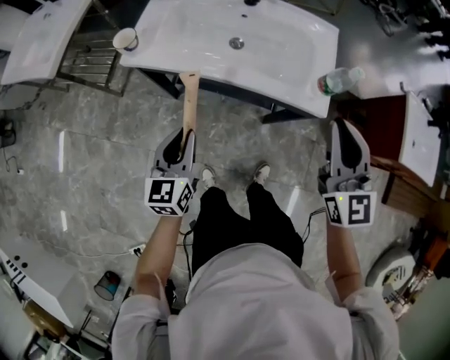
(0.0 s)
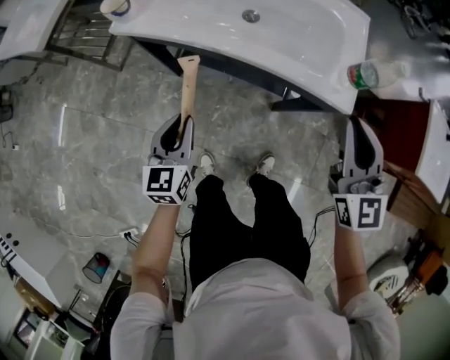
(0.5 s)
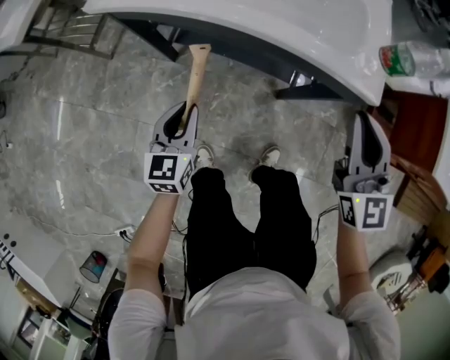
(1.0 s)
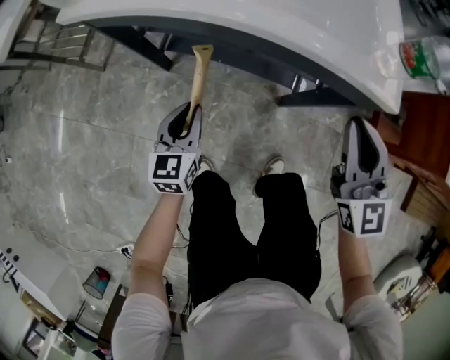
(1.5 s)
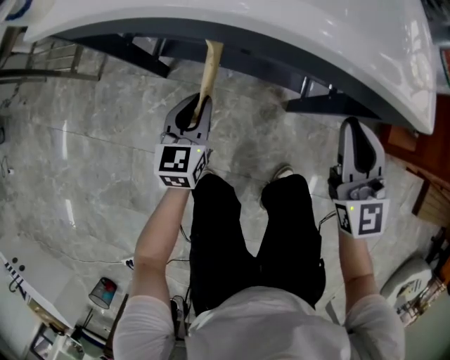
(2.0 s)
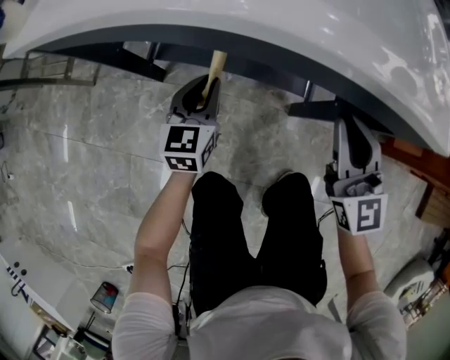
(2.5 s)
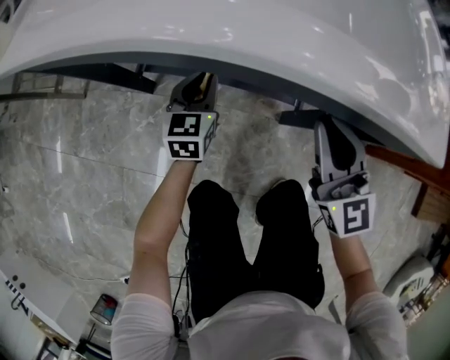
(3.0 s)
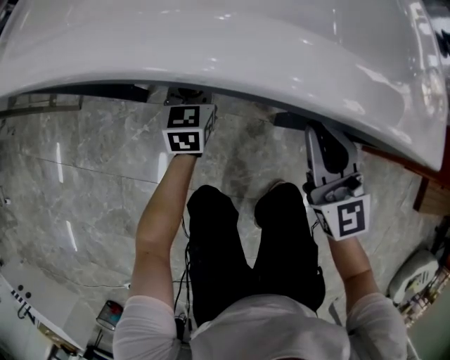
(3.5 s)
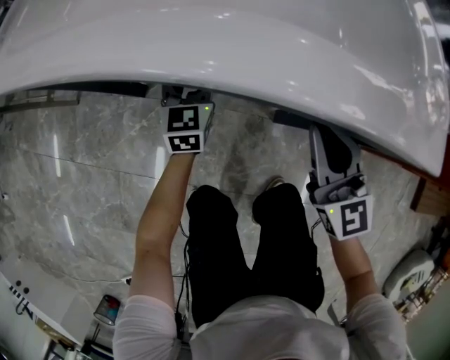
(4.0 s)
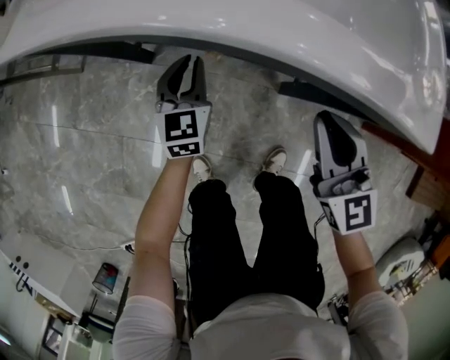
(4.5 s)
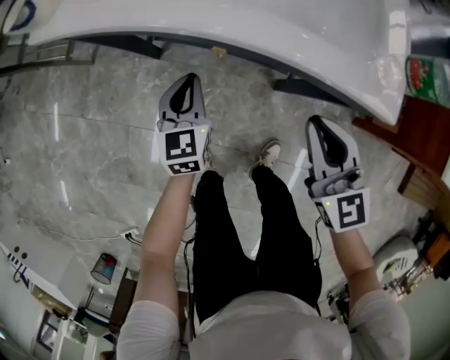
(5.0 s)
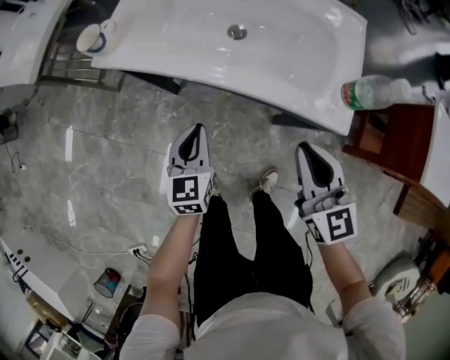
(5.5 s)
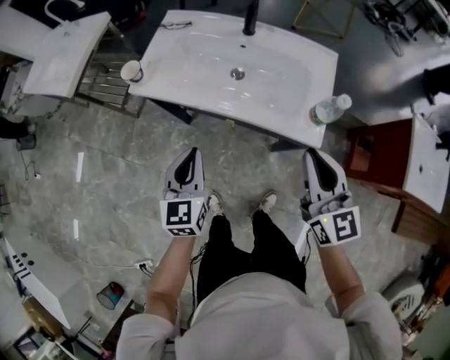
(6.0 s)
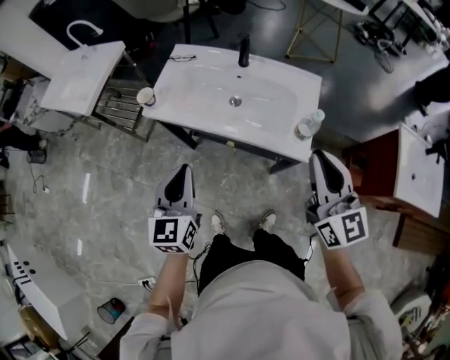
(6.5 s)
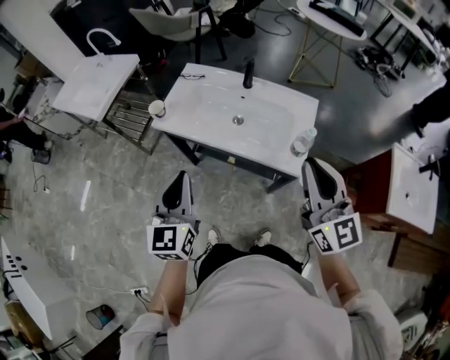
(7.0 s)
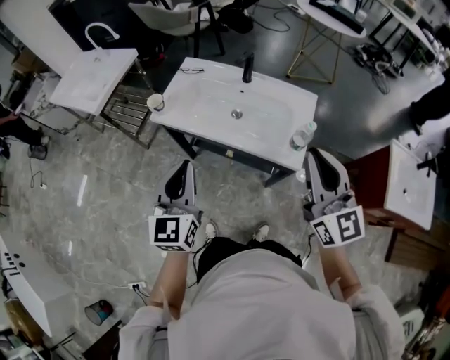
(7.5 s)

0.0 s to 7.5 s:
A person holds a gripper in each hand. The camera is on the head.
0.0 to 2.0 s: The two grippers go some 35 cm downward.
2.0 to 4.0 s: The left gripper moves forward, about 15 cm, and opens, while the right gripper goes some 10 cm downward and forward.
4.0 to 5.5 s: The left gripper shifts about 30 cm upward and backward, and closes up; the right gripper moves upward, roughly 25 cm.
5.5 to 7.5 s: The grippers both shift upward by roughly 35 cm. The left gripper rotates about 20 degrees; the right gripper rotates approximately 20 degrees.

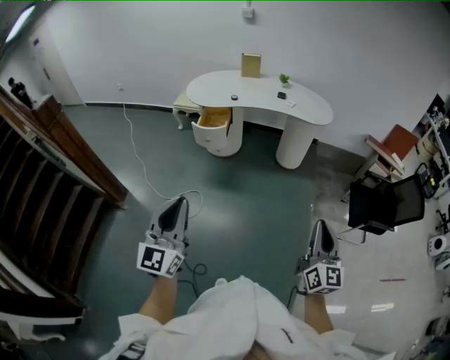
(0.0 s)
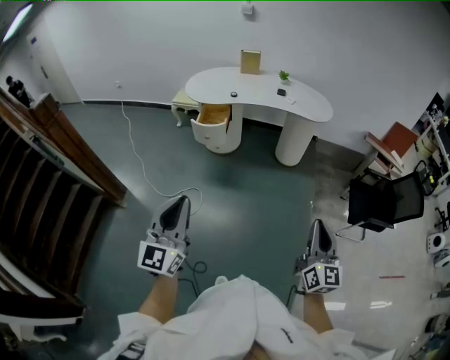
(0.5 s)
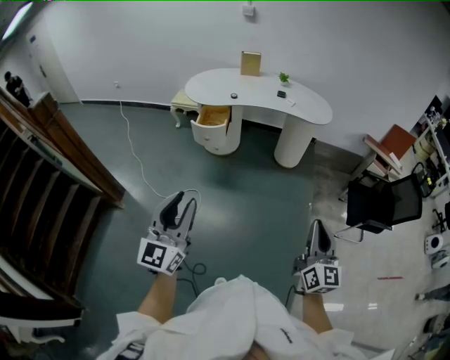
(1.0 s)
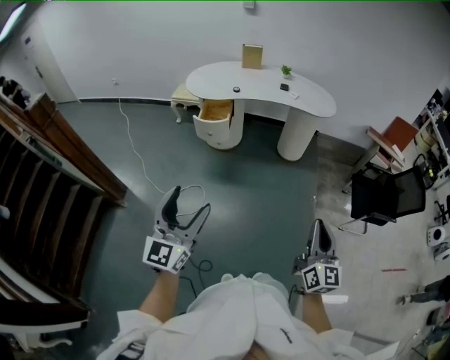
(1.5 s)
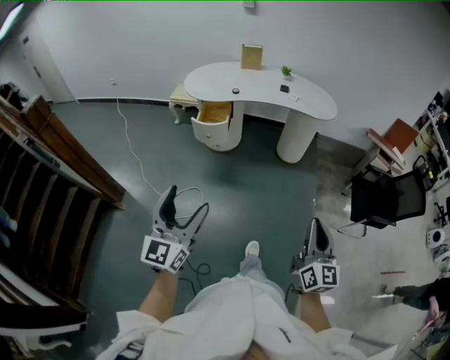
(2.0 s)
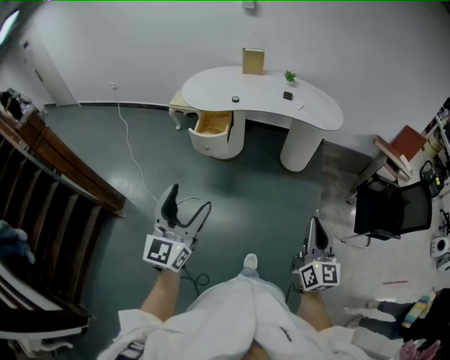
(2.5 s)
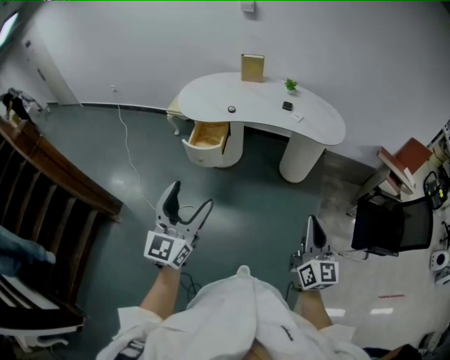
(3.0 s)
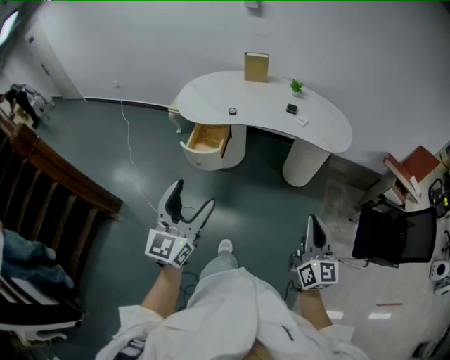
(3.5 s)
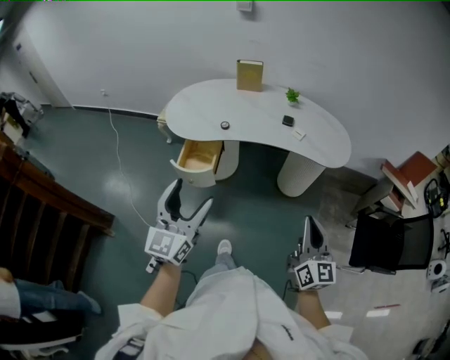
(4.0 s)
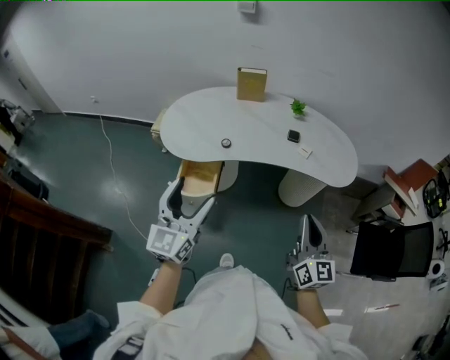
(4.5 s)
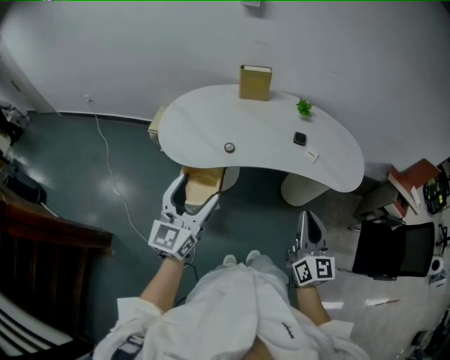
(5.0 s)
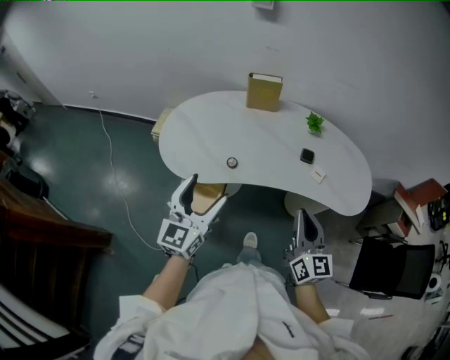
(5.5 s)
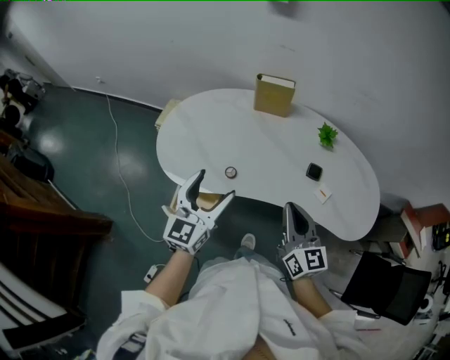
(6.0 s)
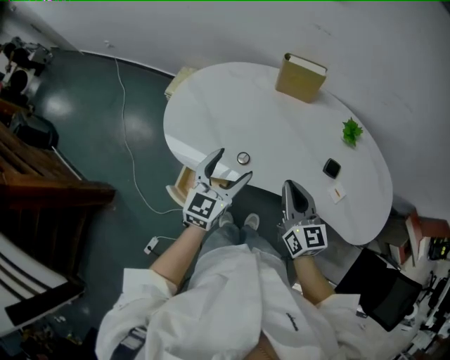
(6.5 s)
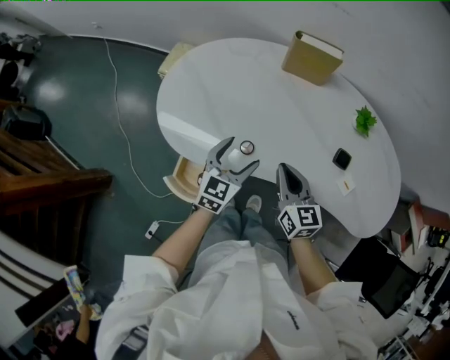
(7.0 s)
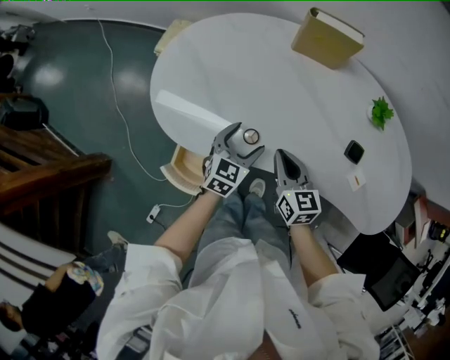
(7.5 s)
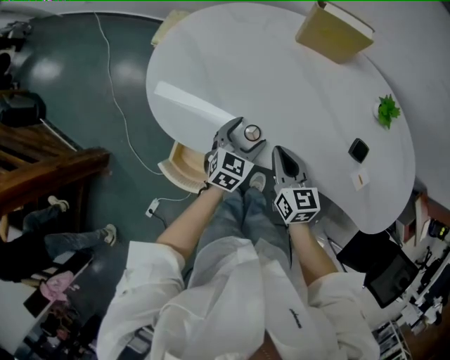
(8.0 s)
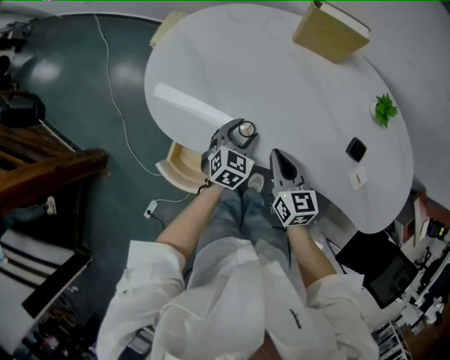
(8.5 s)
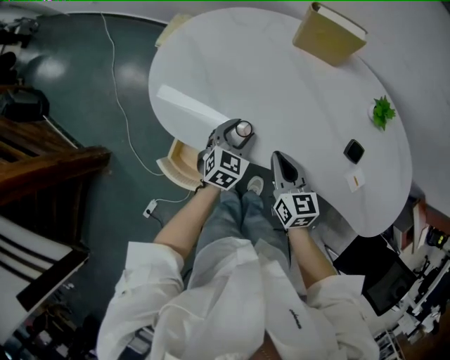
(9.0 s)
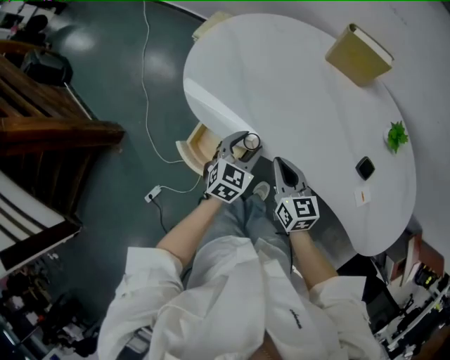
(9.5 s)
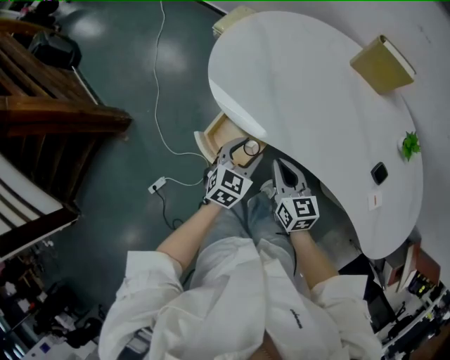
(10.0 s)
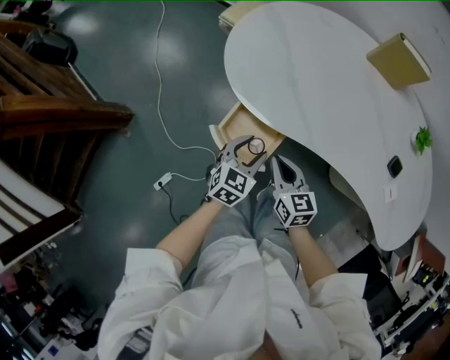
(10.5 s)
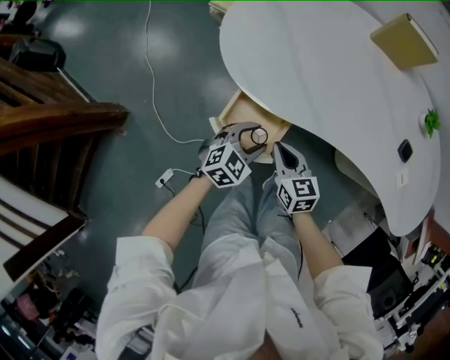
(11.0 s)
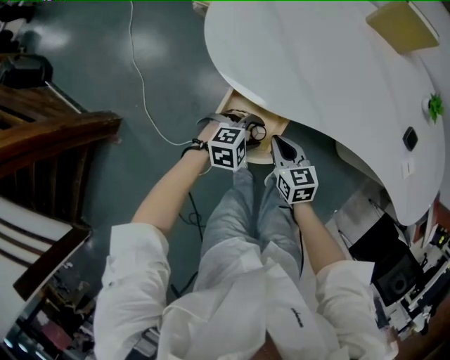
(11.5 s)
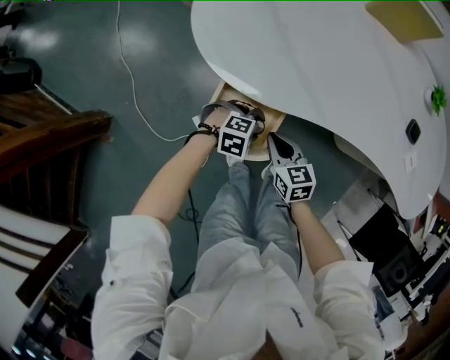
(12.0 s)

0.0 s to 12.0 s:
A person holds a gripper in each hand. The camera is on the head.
0.0 to 2.0 s: The left gripper is displaced forward by roughly 5 cm, and opens its fingers; the right gripper goes about 10 cm to the left.
2.0 to 4.0 s: Both grippers are carried forward, roughly 40 cm.
4.0 to 6.0 s: The pair of grippers is taken forward, about 50 cm.
6.0 to 8.0 s: The right gripper shifts roughly 30 cm downward, forward and to the left, and swivels approximately 30 degrees. Meanwhile the left gripper heads downward and forward, covering roughly 35 cm, and angles its fingers downward, by some 30 degrees.
8.0 to 10.0 s: Both grippers travel together to the left and backward, about 15 cm. The left gripper closes its fingers.
10.0 to 12.0 s: Both grippers move downward, approximately 20 cm. The left gripper changes its angle by roughly 80 degrees.

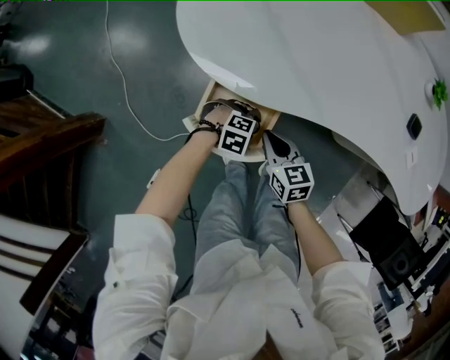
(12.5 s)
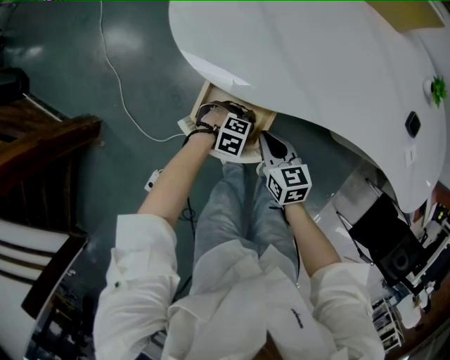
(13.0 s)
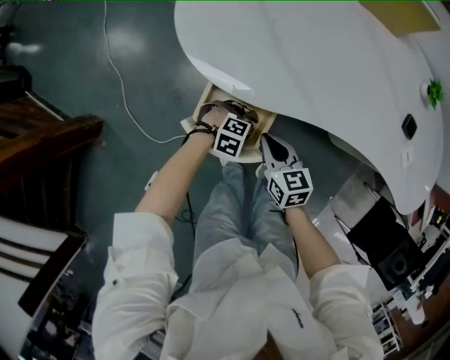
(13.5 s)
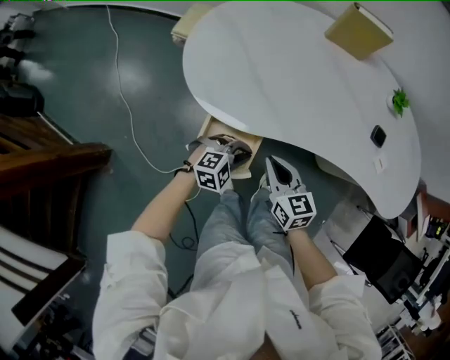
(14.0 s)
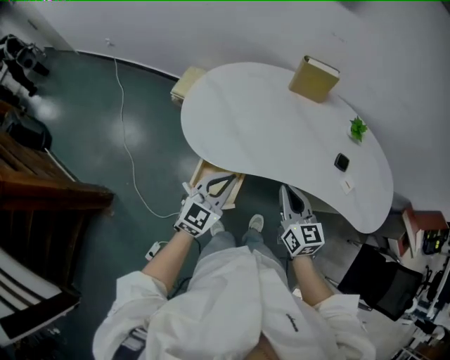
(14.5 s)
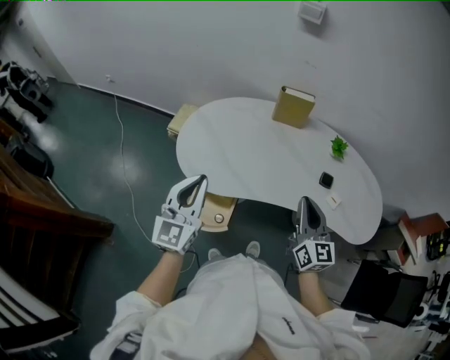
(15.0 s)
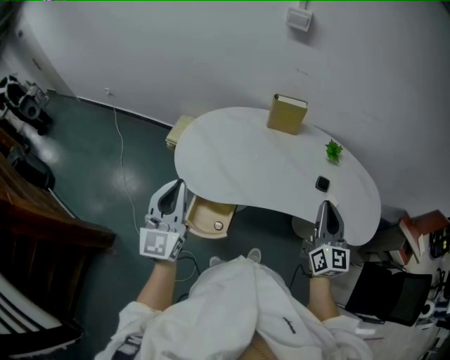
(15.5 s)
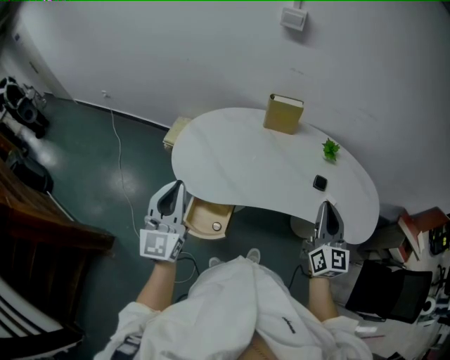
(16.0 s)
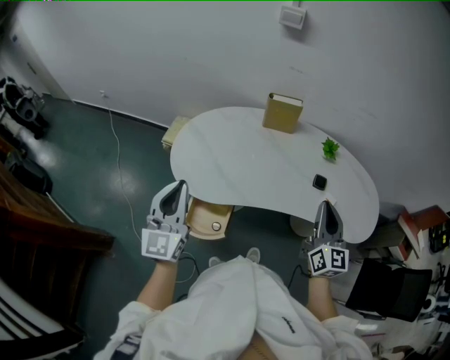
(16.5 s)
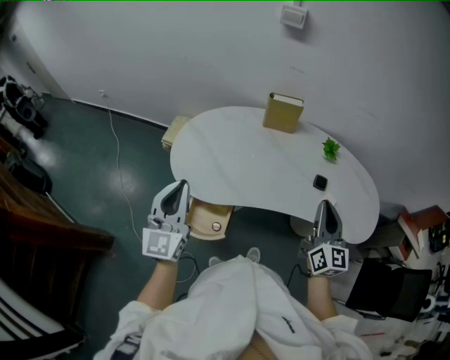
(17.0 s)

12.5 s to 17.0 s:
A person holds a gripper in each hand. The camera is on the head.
12.5 to 14.5 s: The grippers both shift upward by roughly 40 cm. The left gripper points its fingers about 50 degrees further upward, and closes its fingers, while the right gripper swivels about 30 degrees.
14.5 to 17.0 s: The right gripper heads to the right and upward, covering about 20 cm, and changes its angle by some 30 degrees. Meanwhile the left gripper is displaced upward by about 20 cm, and swivels about 30 degrees.

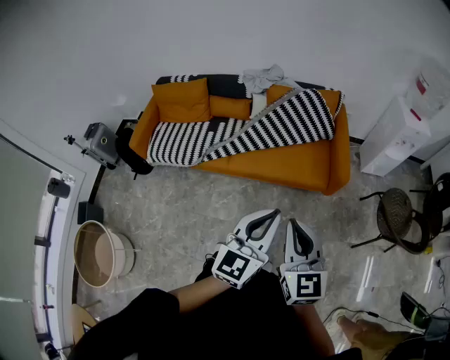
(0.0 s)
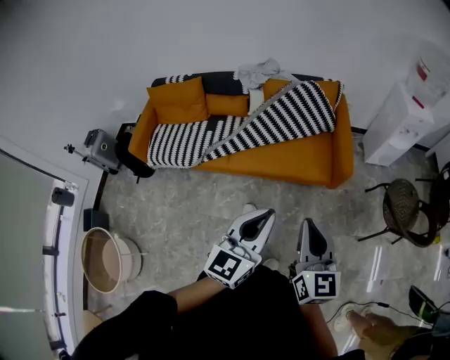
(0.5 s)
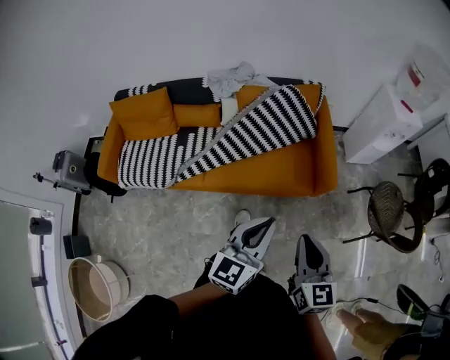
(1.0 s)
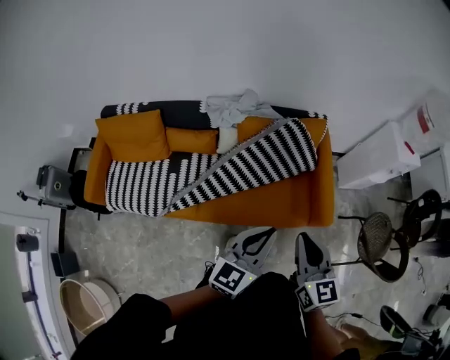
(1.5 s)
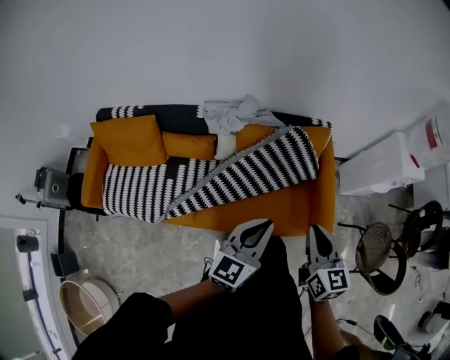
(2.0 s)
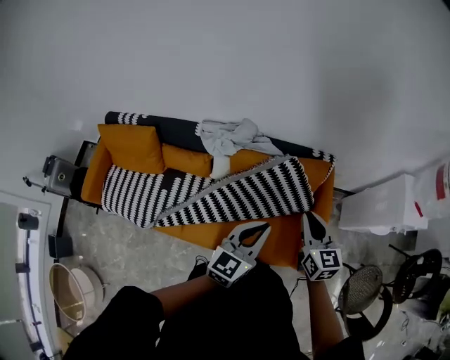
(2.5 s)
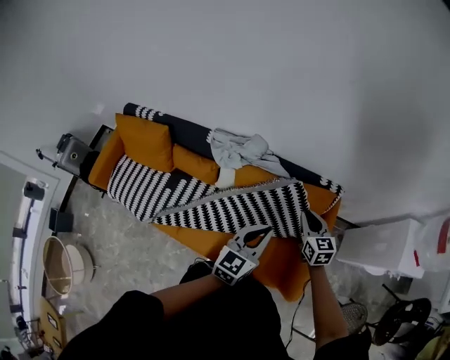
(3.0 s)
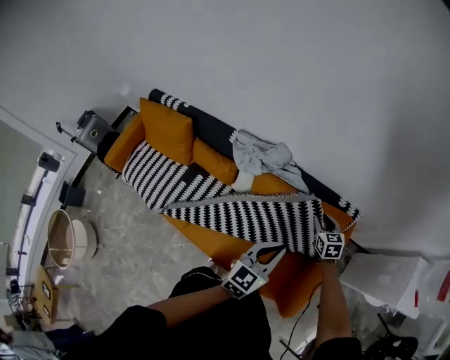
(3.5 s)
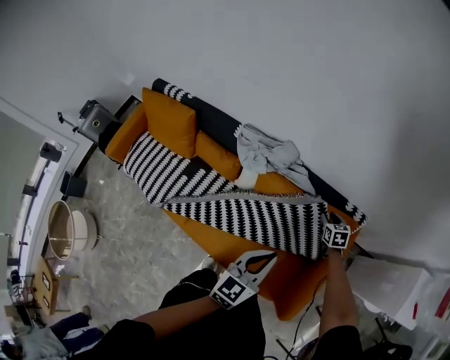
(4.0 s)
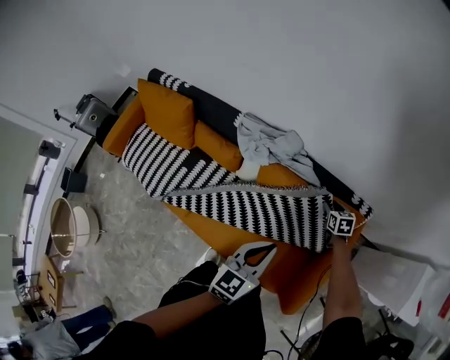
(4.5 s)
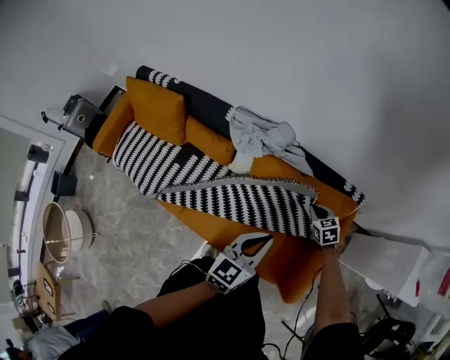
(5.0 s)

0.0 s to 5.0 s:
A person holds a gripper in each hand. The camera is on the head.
0.0 to 2.5 s: The pair of grippers is taken forward, approximately 60 cm.
2.5 to 5.0 s: The left gripper heads downward and forward, covering roughly 10 cm, while the right gripper travels downward and forward by approximately 35 cm, angles its fingers downward, by approximately 30 degrees, and opens, then closes again.
